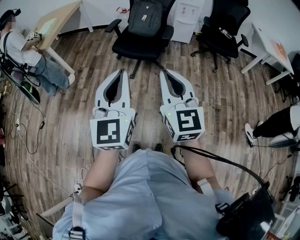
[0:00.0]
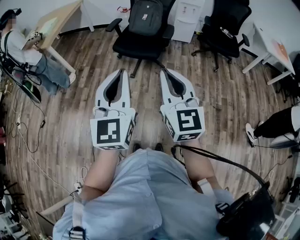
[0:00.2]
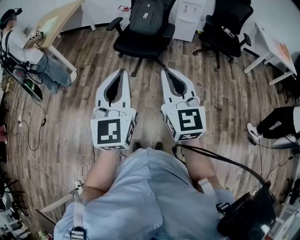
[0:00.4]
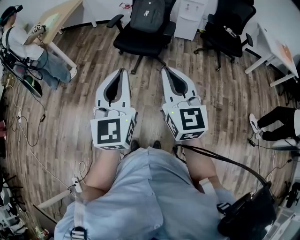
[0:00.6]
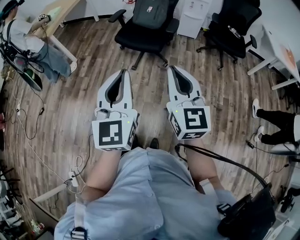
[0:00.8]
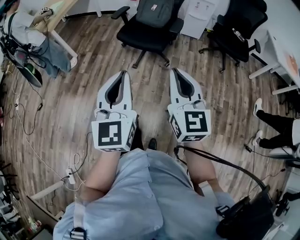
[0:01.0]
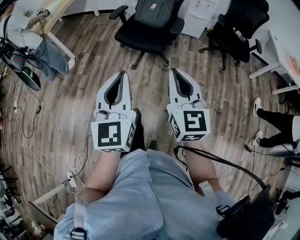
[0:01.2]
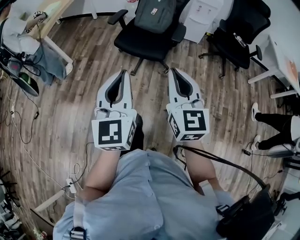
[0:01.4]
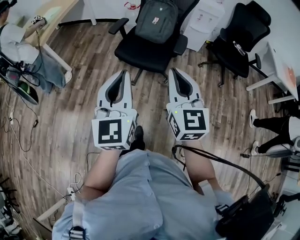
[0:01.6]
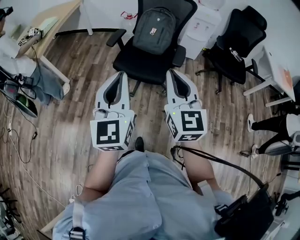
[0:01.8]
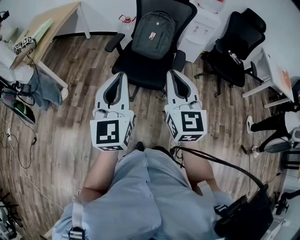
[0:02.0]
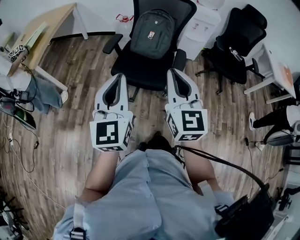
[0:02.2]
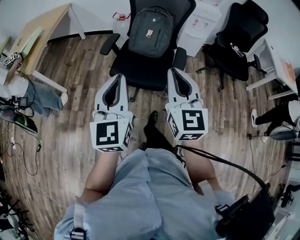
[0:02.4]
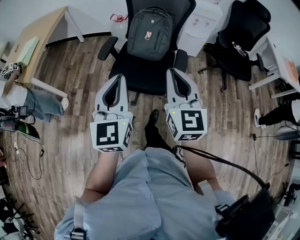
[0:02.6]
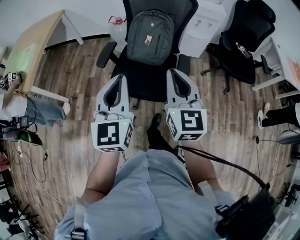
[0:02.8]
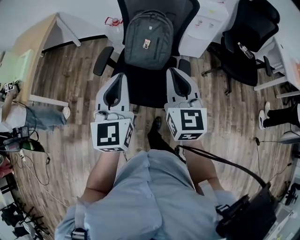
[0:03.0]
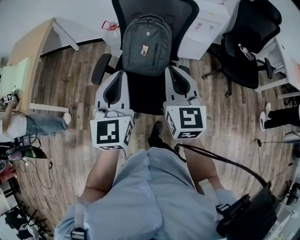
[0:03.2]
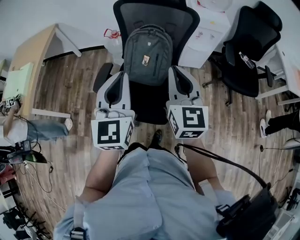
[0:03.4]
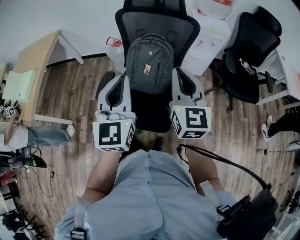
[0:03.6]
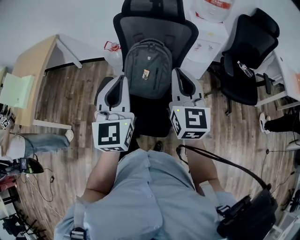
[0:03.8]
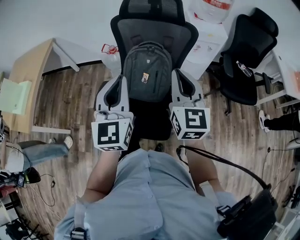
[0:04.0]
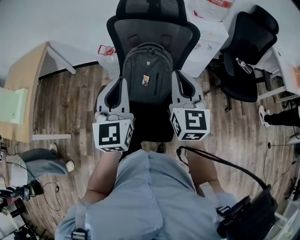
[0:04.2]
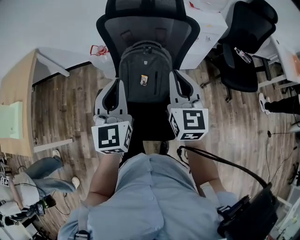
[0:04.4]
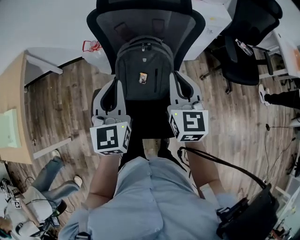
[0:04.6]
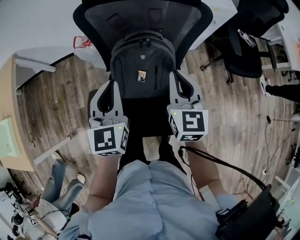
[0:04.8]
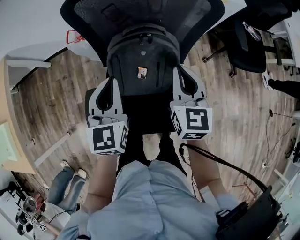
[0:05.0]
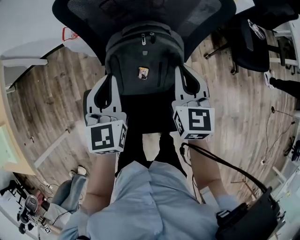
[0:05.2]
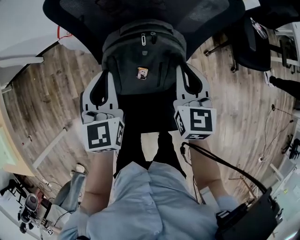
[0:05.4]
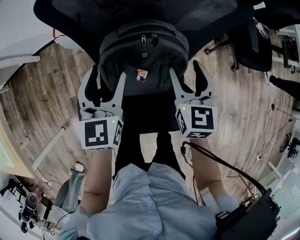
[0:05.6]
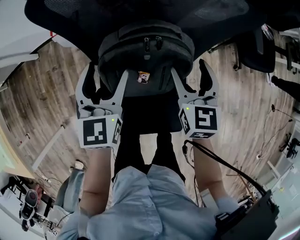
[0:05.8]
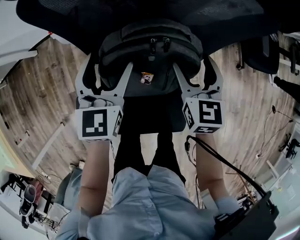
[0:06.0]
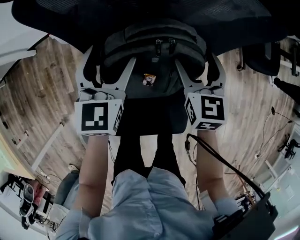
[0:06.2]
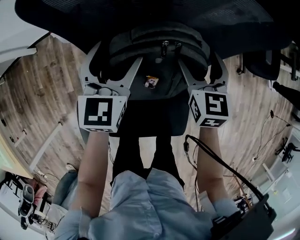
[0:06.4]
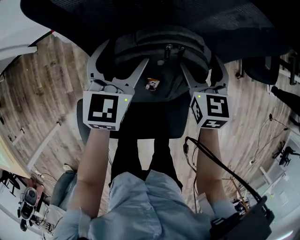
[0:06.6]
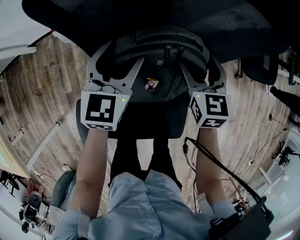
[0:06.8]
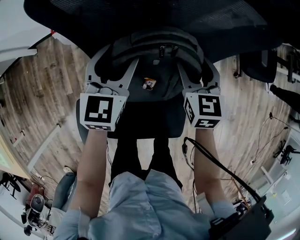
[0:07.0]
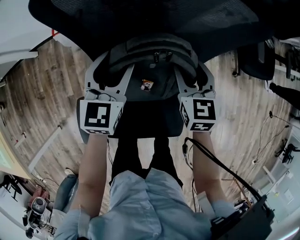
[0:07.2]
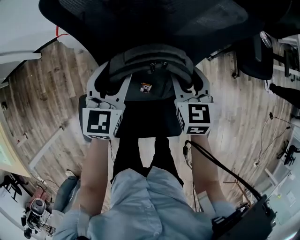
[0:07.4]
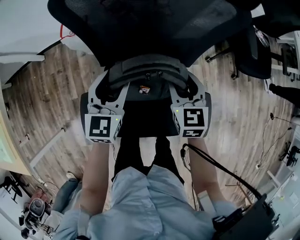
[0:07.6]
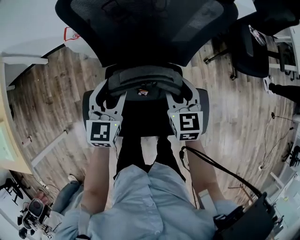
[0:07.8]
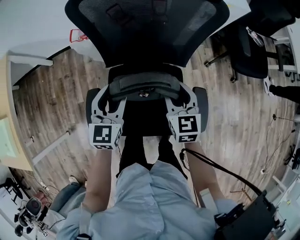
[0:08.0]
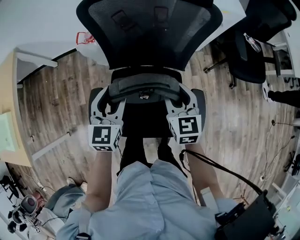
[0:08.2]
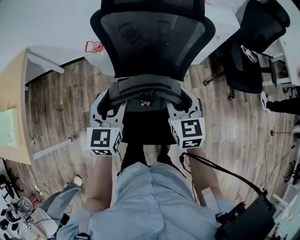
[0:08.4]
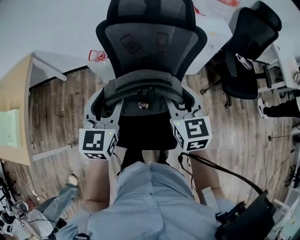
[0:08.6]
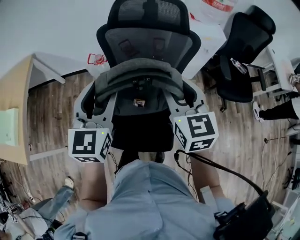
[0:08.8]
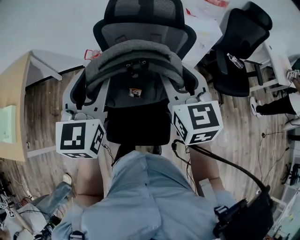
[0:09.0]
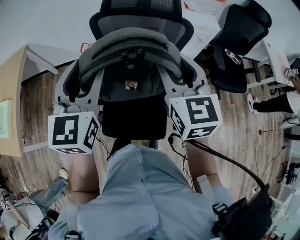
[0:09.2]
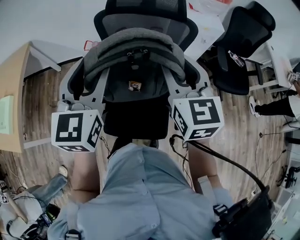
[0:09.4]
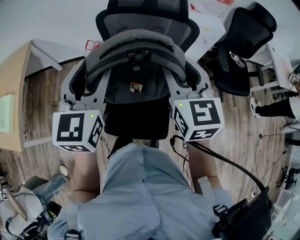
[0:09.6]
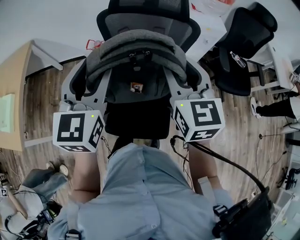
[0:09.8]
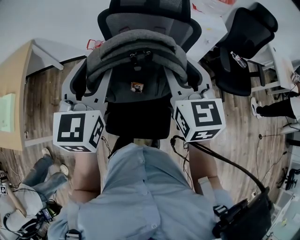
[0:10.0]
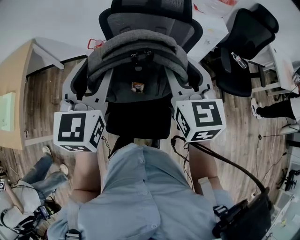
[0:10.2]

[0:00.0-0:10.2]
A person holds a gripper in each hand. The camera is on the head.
0:00.0 to 0:01.4: The left gripper travels forward and downward by some 15 cm. Meanwhile the right gripper heads forward, covering about 15 cm.
0:01.4 to 0:03.0: Both grippers travel together forward, about 40 cm.
0:03.0 to 0:04.4: Both grippers move forward, about 20 cm.
0:04.4 to 0:05.8: Both grippers move downward and forward, some 25 cm. The right gripper swivels approximately 20 degrees, and opens. Meanwhile the left gripper turns by about 20 degrees, and opens up.
0:07.2 to 0:08.8: Both grippers move upward and backward, roughly 30 cm. The right gripper changes its angle by some 20 degrees.
0:08.8 to 0:10.2: The grippers move only a little.

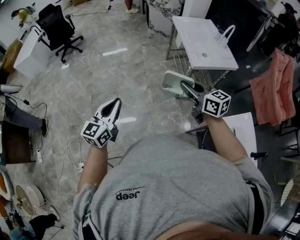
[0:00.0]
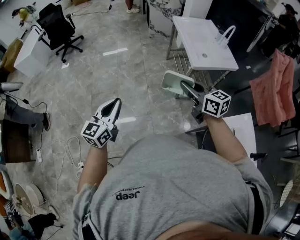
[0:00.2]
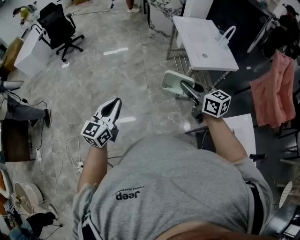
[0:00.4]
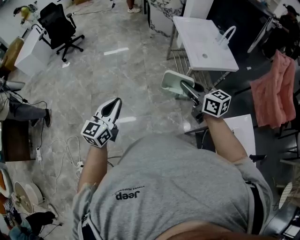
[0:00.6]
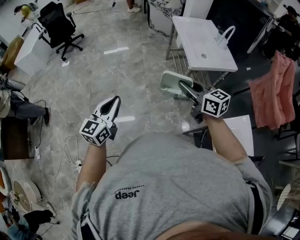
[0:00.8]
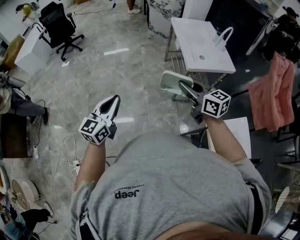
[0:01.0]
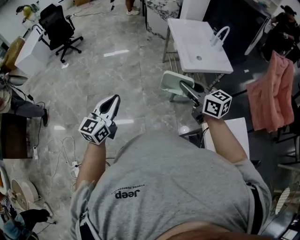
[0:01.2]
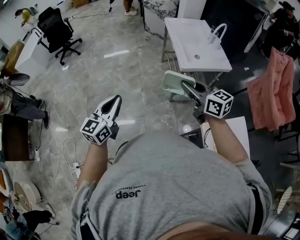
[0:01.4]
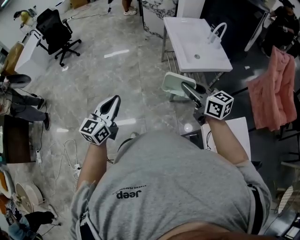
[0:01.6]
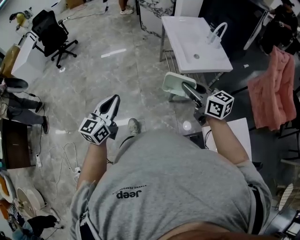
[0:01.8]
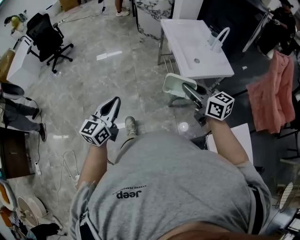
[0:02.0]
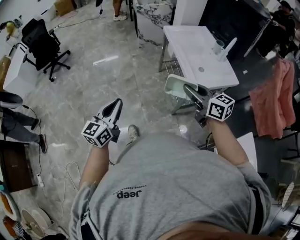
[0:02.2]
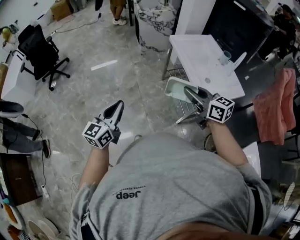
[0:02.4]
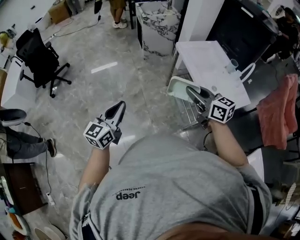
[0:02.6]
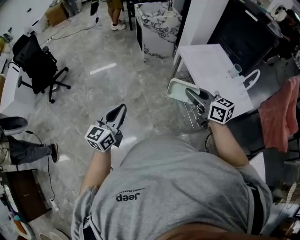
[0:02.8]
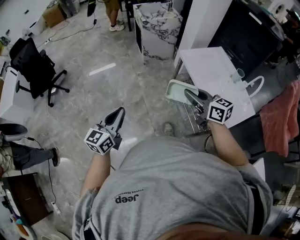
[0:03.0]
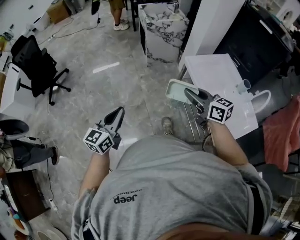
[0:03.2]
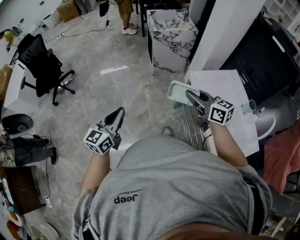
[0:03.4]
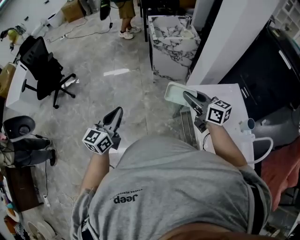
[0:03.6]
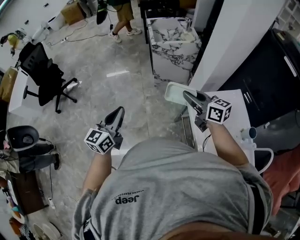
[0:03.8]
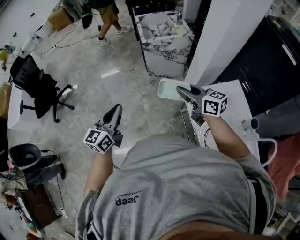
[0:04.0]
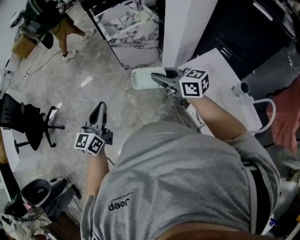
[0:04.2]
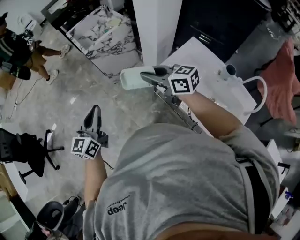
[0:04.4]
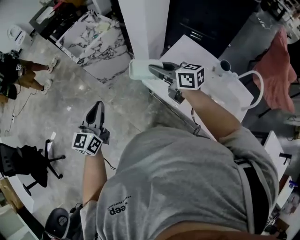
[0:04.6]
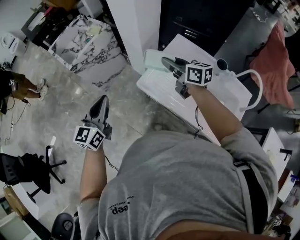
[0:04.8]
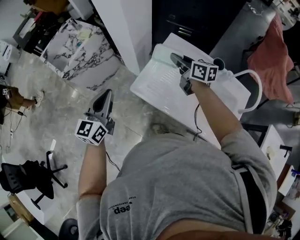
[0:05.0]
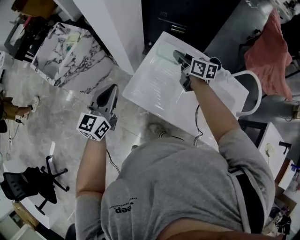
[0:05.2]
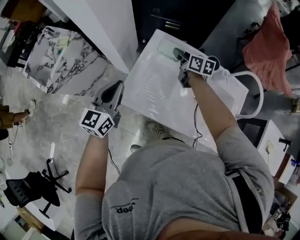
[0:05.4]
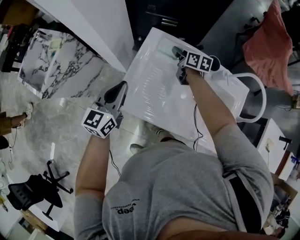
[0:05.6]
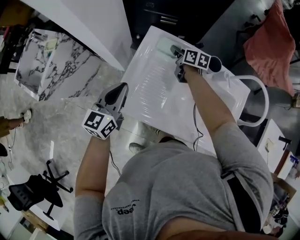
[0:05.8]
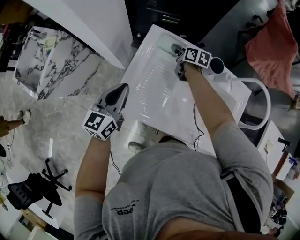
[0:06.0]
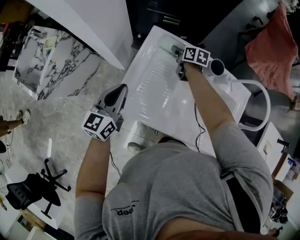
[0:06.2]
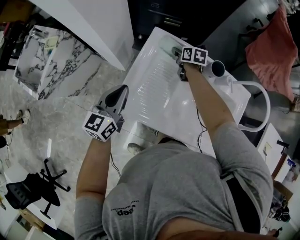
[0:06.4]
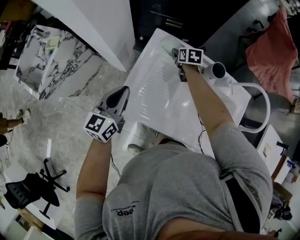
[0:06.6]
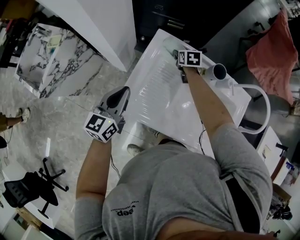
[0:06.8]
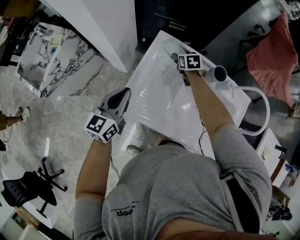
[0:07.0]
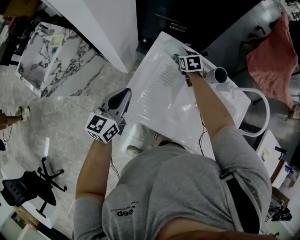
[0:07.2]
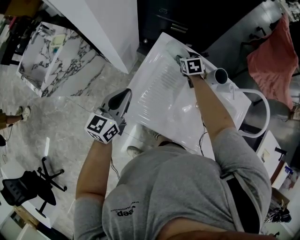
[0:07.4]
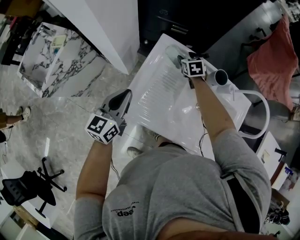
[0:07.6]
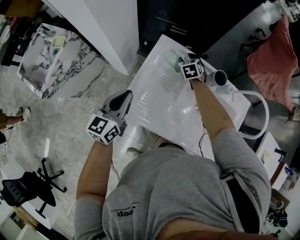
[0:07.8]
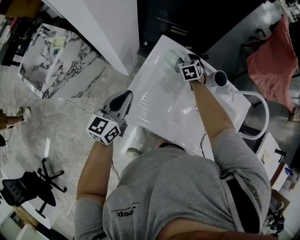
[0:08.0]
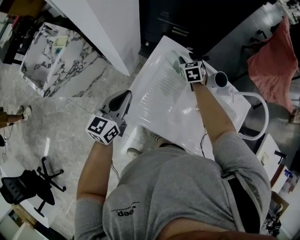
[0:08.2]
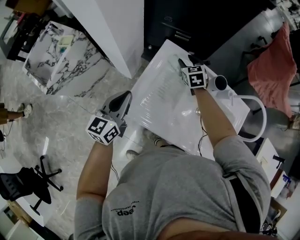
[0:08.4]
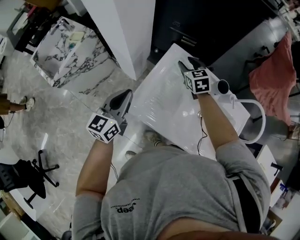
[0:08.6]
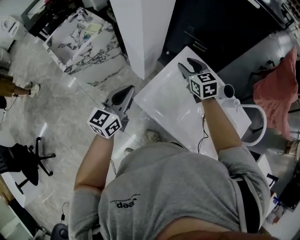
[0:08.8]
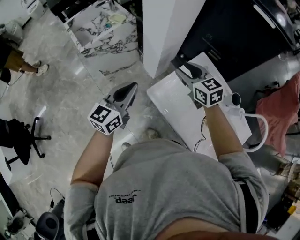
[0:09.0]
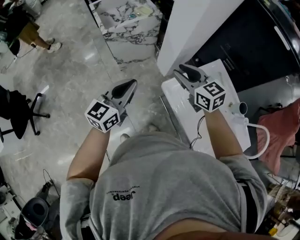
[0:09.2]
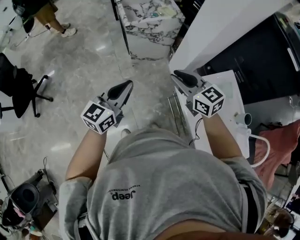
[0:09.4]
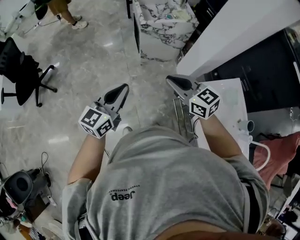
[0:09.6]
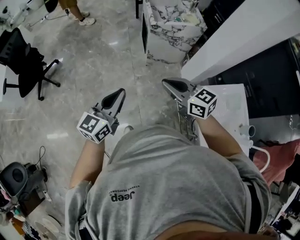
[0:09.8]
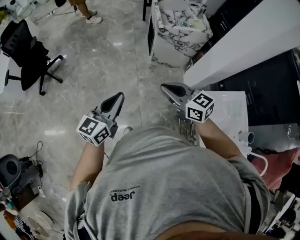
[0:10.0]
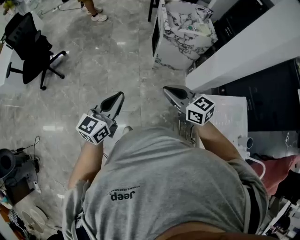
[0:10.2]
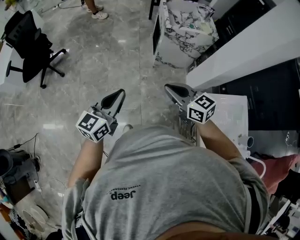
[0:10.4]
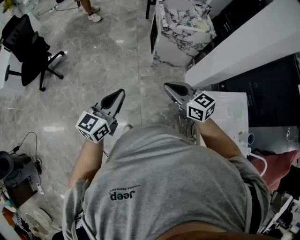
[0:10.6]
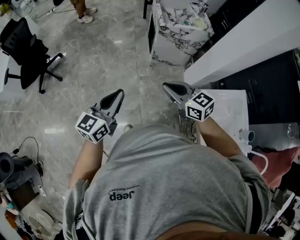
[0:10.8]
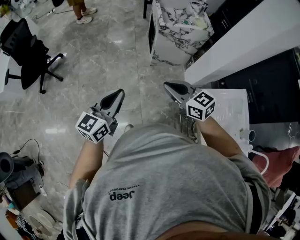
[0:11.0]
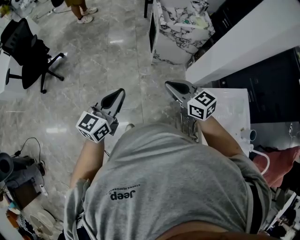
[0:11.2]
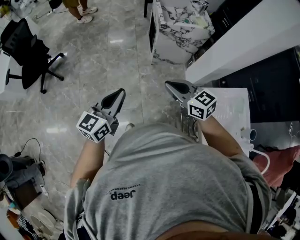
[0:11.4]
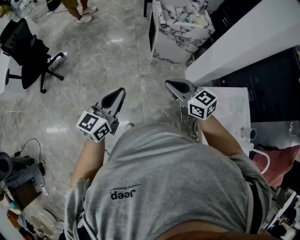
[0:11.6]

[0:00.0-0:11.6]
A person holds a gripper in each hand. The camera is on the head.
0:00.0 to 0:01.4: Both grippers travel together to the right, some 10 cm.
0:01.4 to 0:02.8: The pair of grippers is taken forward, some 50 cm.
0:02.8 to 0:04.4: The two grippers travel together, forward, some 50 cm.
0:04.4 to 0:05.8: The two grippers travel together, approximately 50 cm. The left gripper rotates approximately 40 degrees, while the right gripper turns by some 70 degrees.
0:05.8 to 0:07.2: The right gripper changes its angle by approximately 40 degrees, and opens up.
0:07.2 to 0:08.8: The left gripper shifts by approximately 10 cm; the right gripper moves upward, roughly 20 cm, and changes its angle by some 30 degrees.
0:08.8 to 0:10.2: The pair of grippers is taken some 50 cm. The right gripper swivels about 70 degrees, and closes its fingers. The left gripper turns by approximately 40 degrees.
0:10.2 to 0:11.6: The grippers make only small movements.

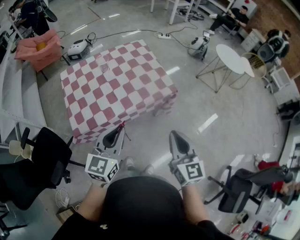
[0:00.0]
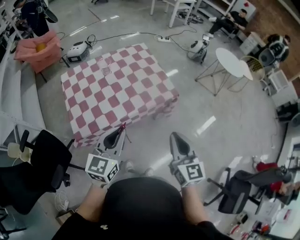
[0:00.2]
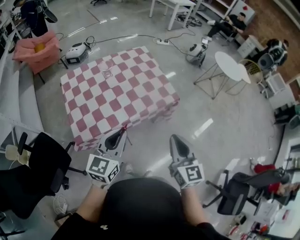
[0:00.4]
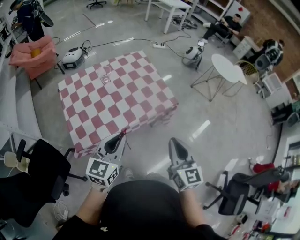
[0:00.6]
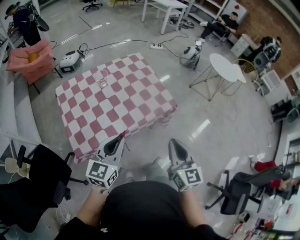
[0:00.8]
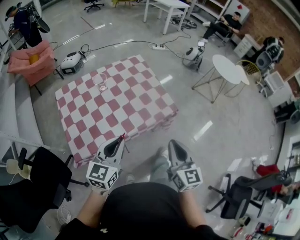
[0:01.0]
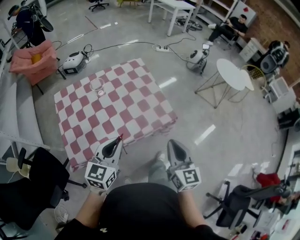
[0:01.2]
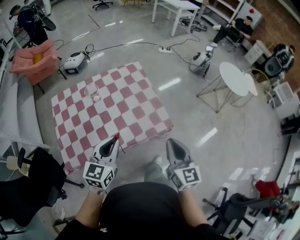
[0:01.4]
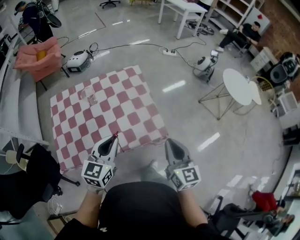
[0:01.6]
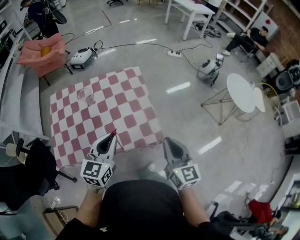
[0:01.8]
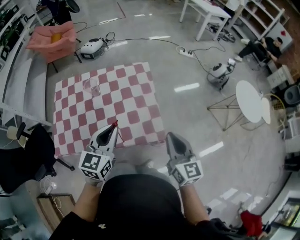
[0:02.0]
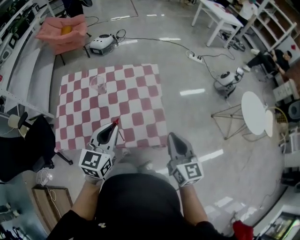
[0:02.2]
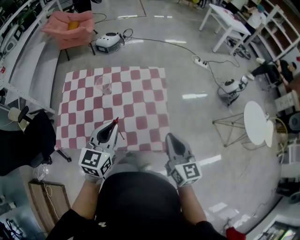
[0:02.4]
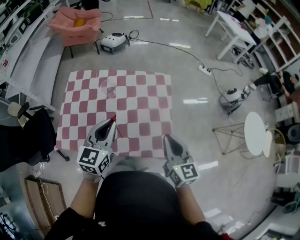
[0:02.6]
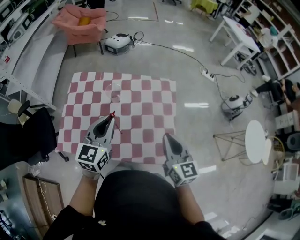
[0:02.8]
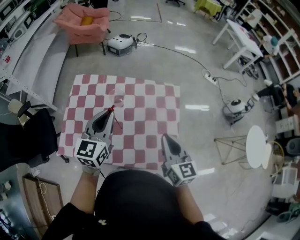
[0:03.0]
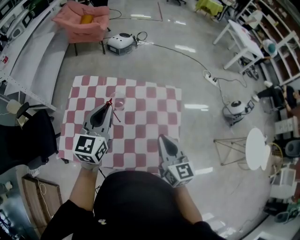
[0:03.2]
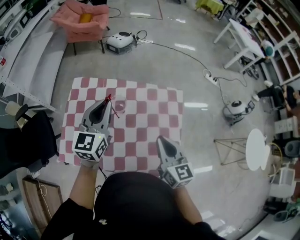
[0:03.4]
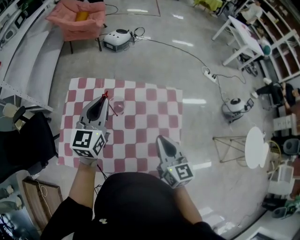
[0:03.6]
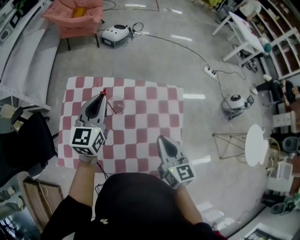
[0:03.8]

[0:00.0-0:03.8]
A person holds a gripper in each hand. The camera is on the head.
0:00.0 to 0:01.2: Both grippers travel together forward, about 15 cm.
0:01.2 to 0:02.6: The right gripper ends up roughly 25 cm from where it was, and changes its angle by roughly 30 degrees. The left gripper moves approximately 20 cm, and turns by about 30 degrees.
0:02.6 to 0:03.8: Both grippers travel together forward and to the left, some 25 cm.
